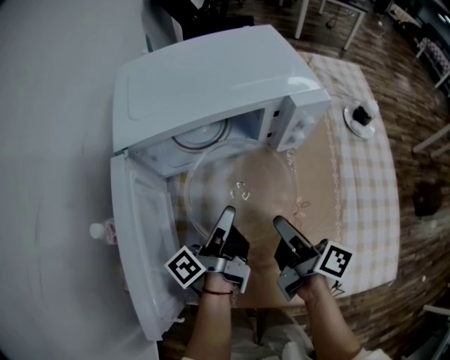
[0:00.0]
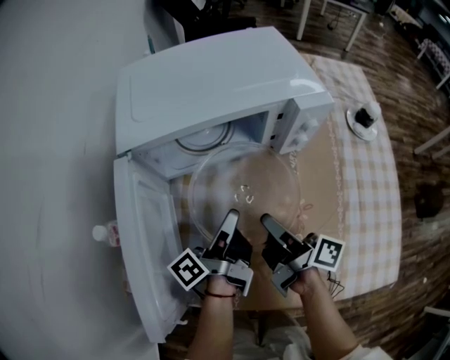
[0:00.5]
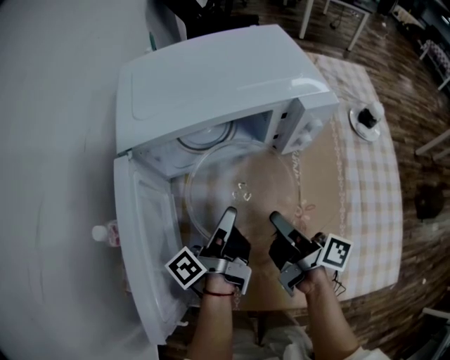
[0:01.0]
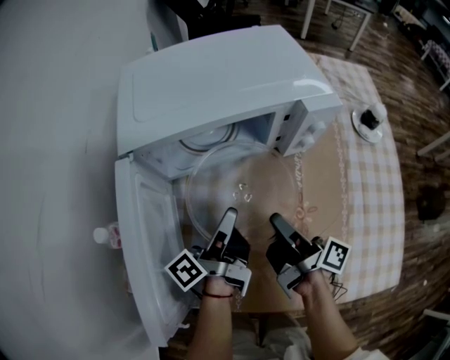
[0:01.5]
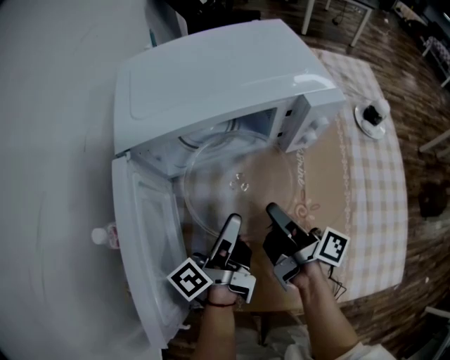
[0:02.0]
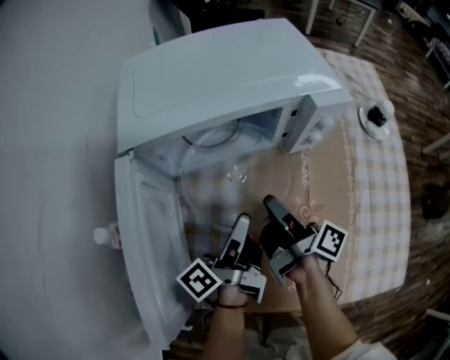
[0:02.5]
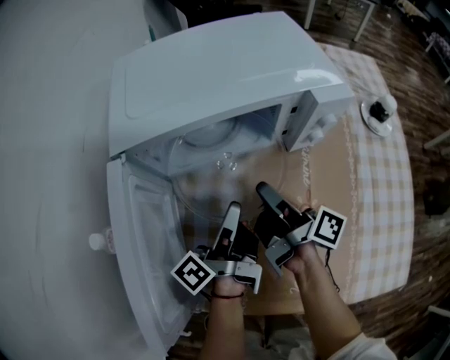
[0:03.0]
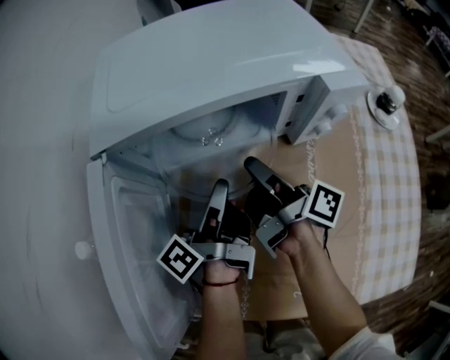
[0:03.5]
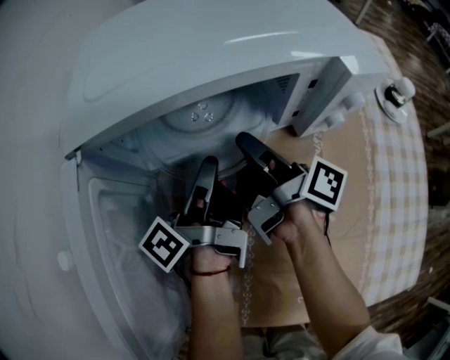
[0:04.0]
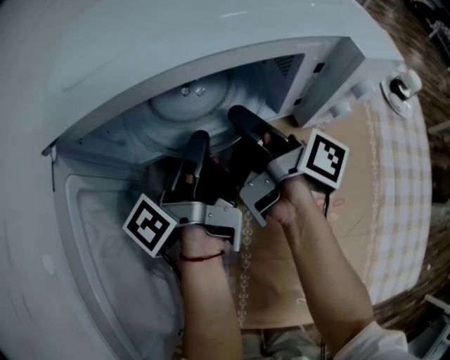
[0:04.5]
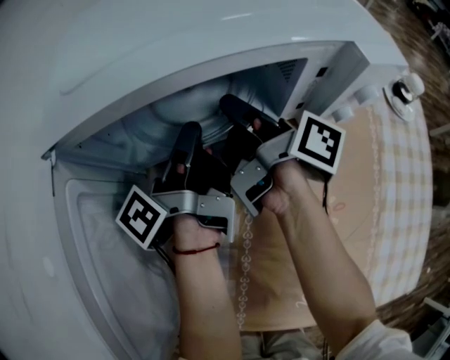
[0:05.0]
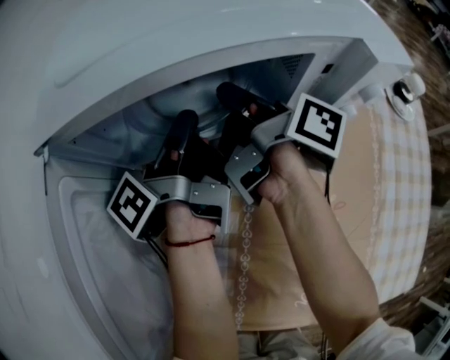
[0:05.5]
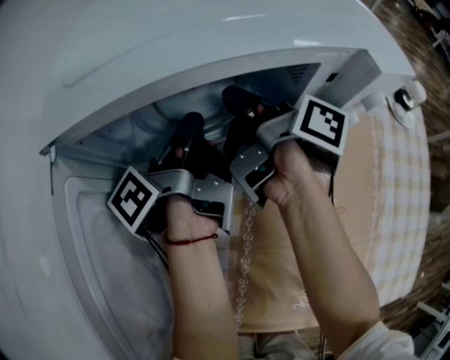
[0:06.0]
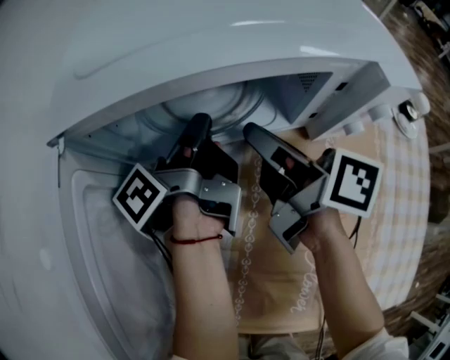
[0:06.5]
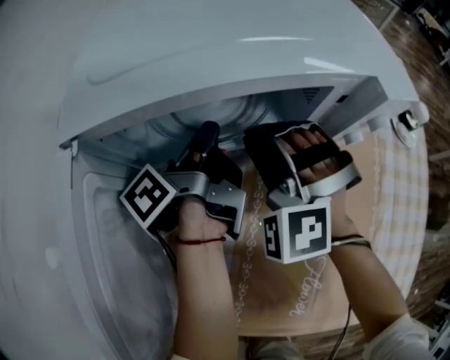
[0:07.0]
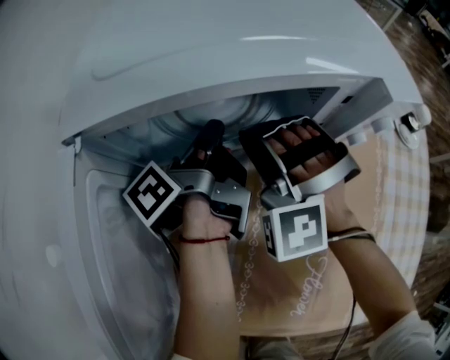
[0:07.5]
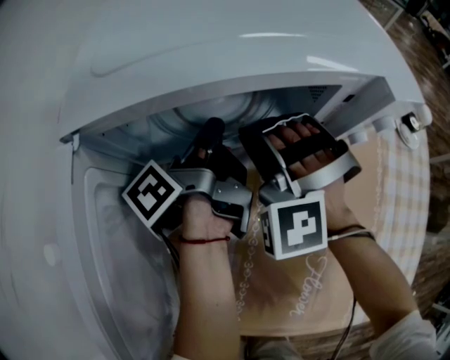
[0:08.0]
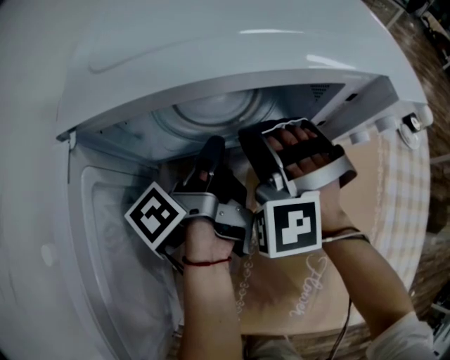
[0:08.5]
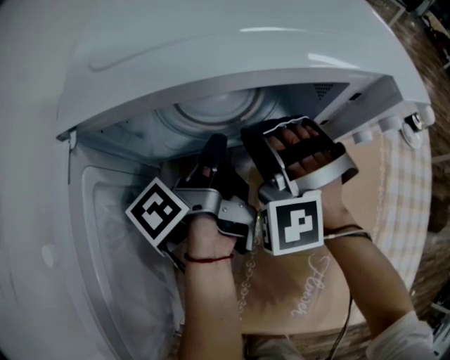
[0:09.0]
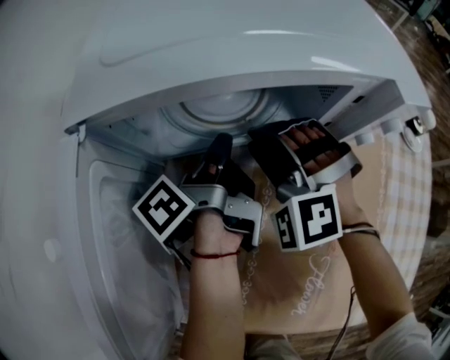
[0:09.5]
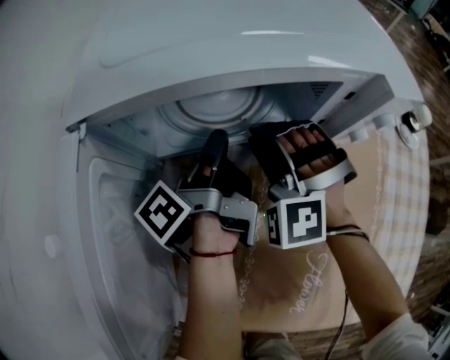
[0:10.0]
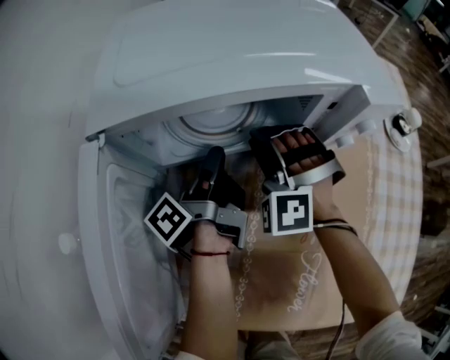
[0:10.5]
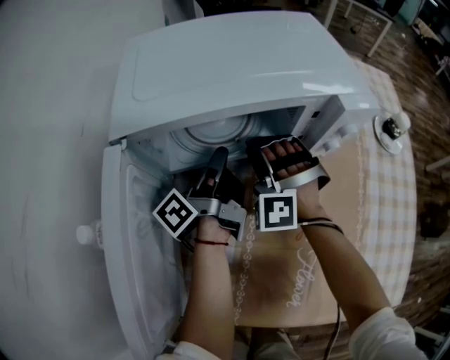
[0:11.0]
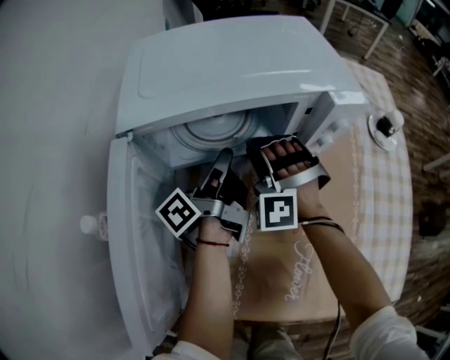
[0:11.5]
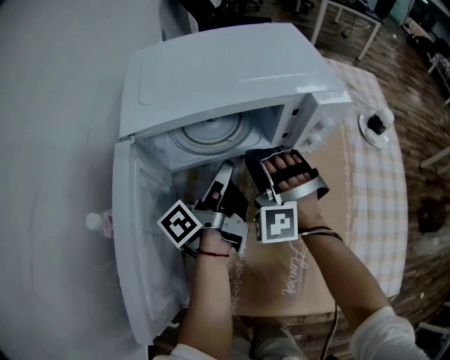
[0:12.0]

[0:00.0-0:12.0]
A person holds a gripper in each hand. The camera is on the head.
0:00.0 to 0:02.0: The right gripper ends up some 5 cm from where it was, and closes.
0:02.0 to 0:04.0: The right gripper moves roughly 15 cm.
0:04.0 to 0:06.0: The right gripper changes place by some 5 cm.
0:06.0 to 0:08.0: The right gripper shifts by some 10 cm, and twists roughly 170 degrees counterclockwise, seen from behind.
0:10.0 to 0:12.0: The right gripper changes place by some 5 cm.

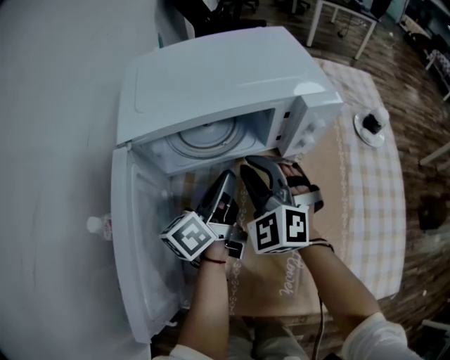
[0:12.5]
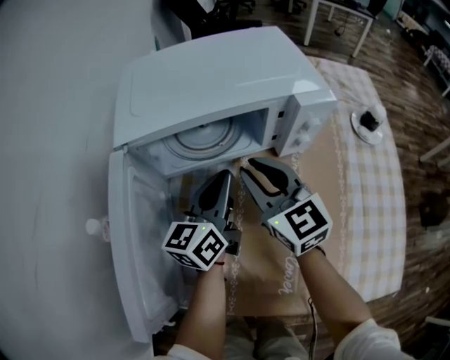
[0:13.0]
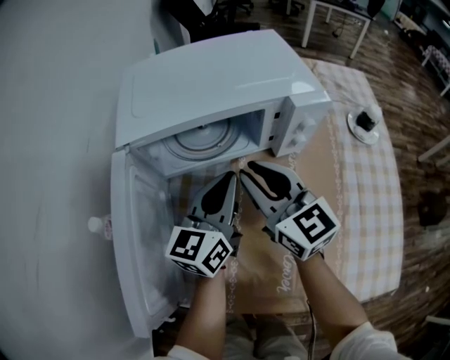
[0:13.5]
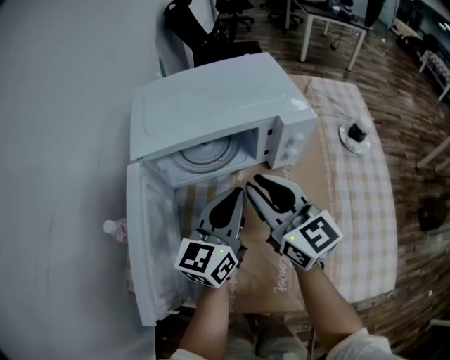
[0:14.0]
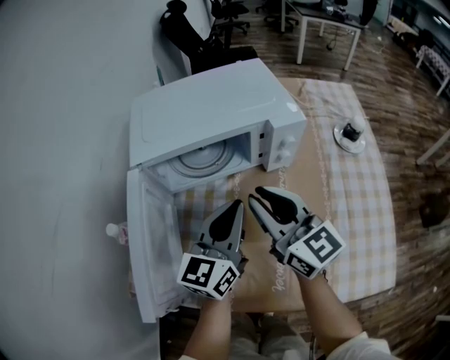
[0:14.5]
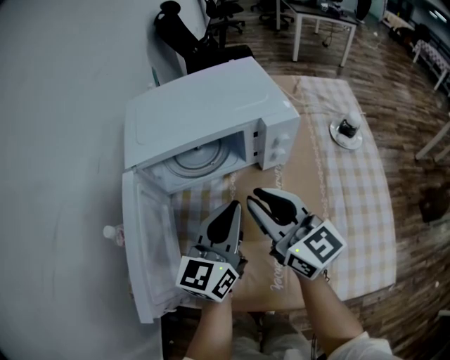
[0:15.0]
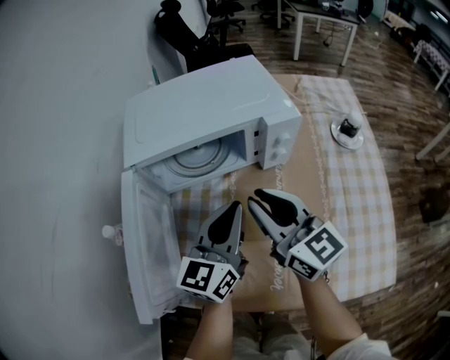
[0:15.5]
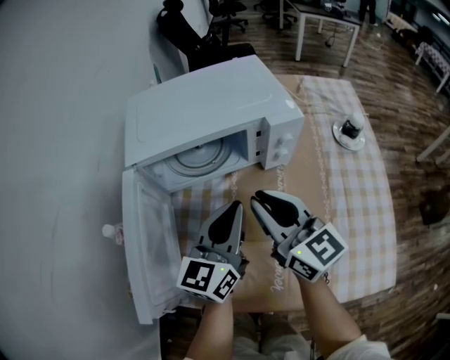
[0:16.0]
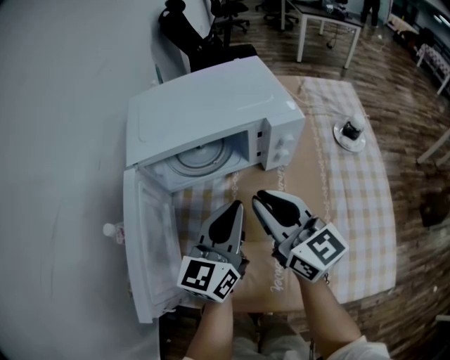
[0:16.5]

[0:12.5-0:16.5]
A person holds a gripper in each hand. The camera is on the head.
0:12.5 to 0:14.5: The right gripper travels upward by some 10 cm, and twists approximately 60 degrees clockwise, seen from behind.

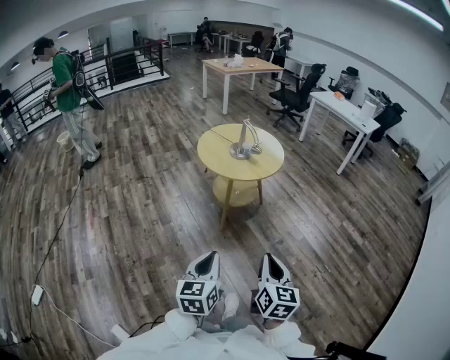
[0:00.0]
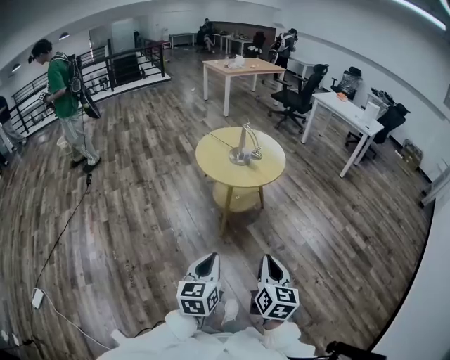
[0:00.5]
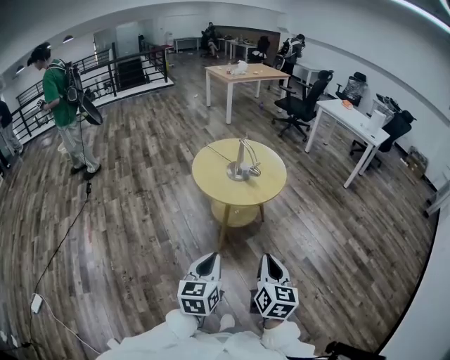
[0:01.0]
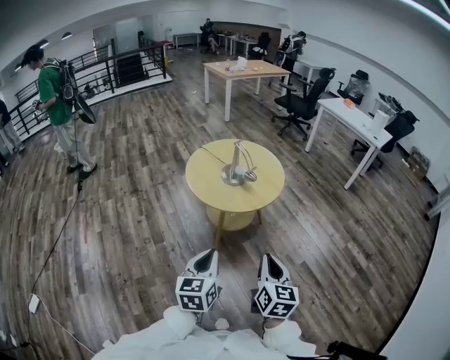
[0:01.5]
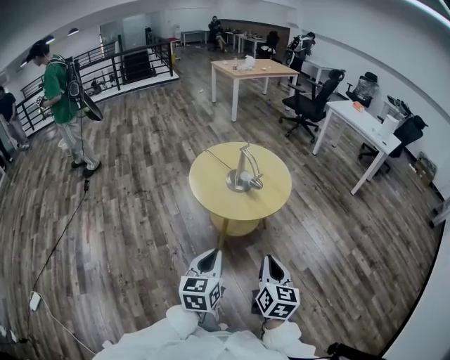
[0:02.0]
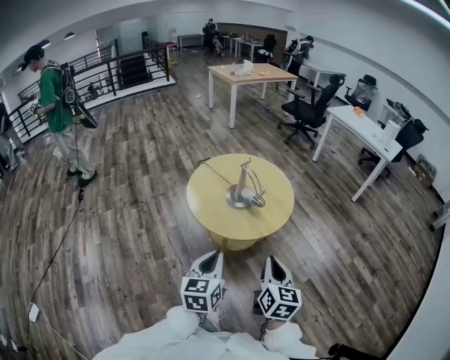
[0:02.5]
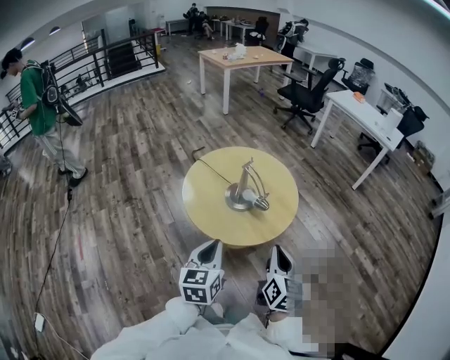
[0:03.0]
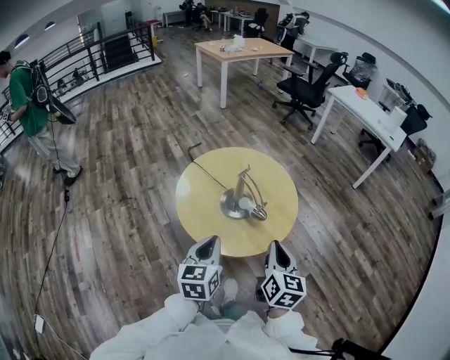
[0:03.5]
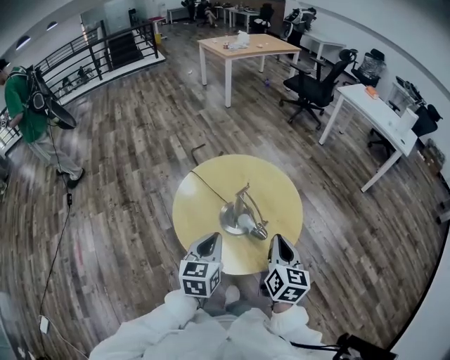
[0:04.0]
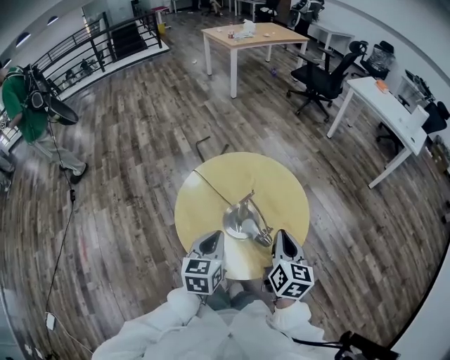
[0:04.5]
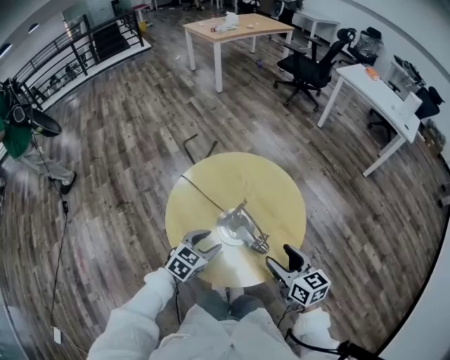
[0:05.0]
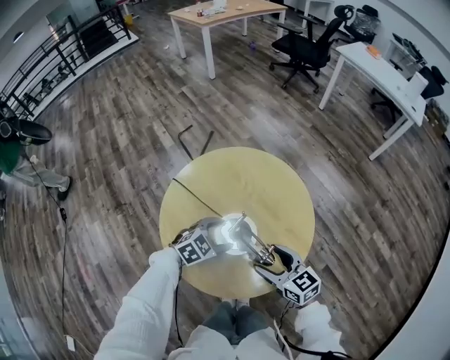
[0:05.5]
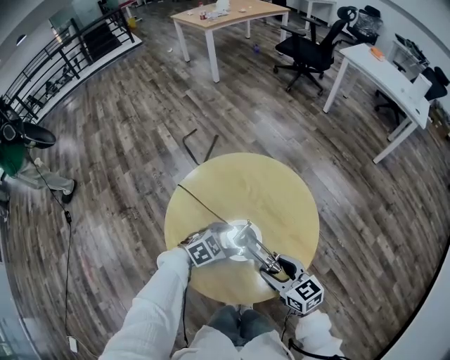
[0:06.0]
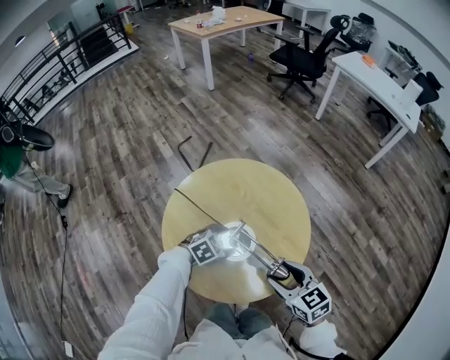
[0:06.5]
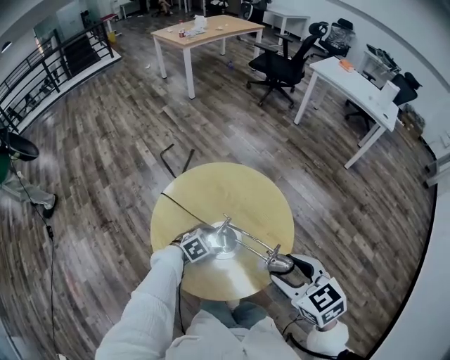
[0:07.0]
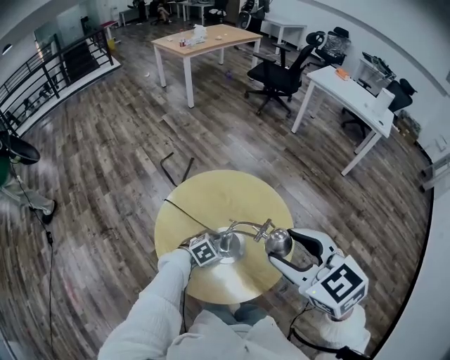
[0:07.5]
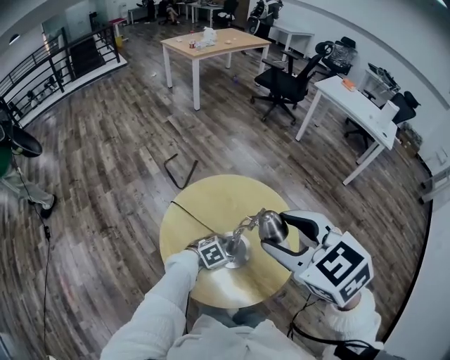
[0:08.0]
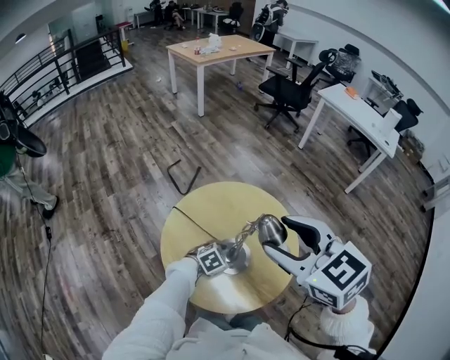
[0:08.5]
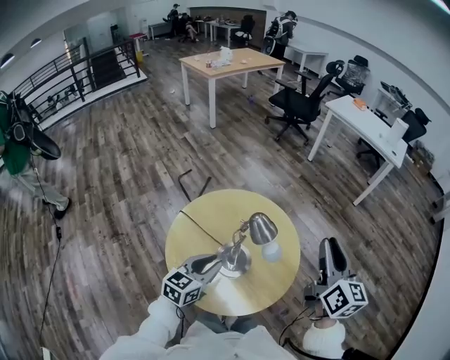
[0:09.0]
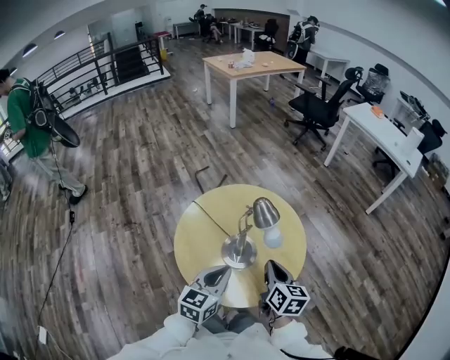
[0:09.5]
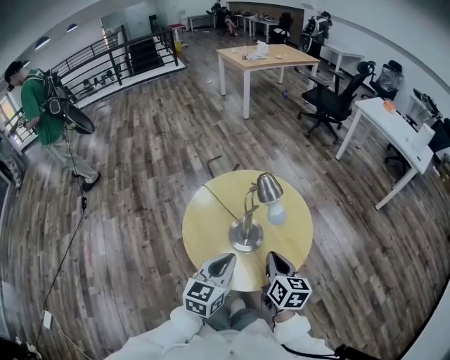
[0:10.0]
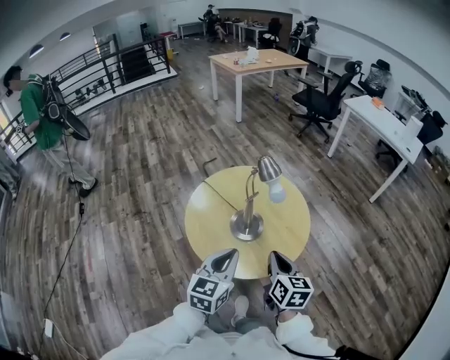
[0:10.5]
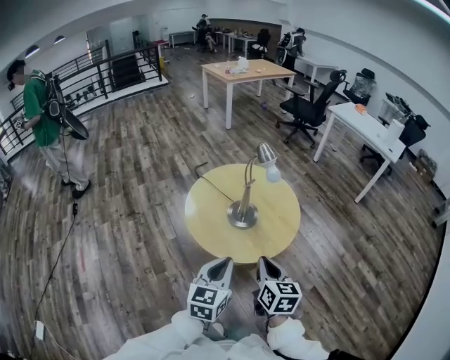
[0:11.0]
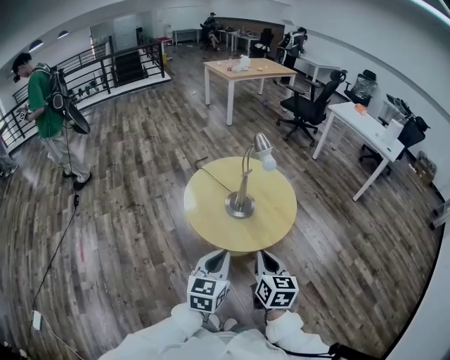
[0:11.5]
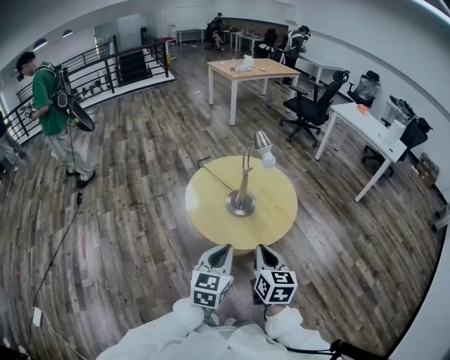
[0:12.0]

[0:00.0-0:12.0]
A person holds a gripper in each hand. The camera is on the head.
0:00.0 to 0:02.0: Both grippers move forward, roughly 30 cm.
0:02.0 to 0:04.0: The pair of grippers is taken forward, about 40 cm.
0:04.0 to 0:06.0: The left gripper shifts some 25 cm downward and forward, changes its angle by roughly 70 degrees, and opens up; the right gripper moves downward and forward, roughly 15 cm, swivels roughly 40 degrees, and opens.
0:06.0 to 0:08.0: The right gripper shifts roughly 35 cm upward, and rotates some 30 degrees.
0:08.0 to 0:10.0: The right gripper shifts approximately 25 cm downward and to the right, twists some 40 degrees clockwise, seen from behind, and closes, while the left gripper travels upward and backward by about 25 cm, points its fingers some 40 degrees further upward, and closes up.
0:10.0 to 0:12.0: Both grippers travel together backward, some 20 cm.
